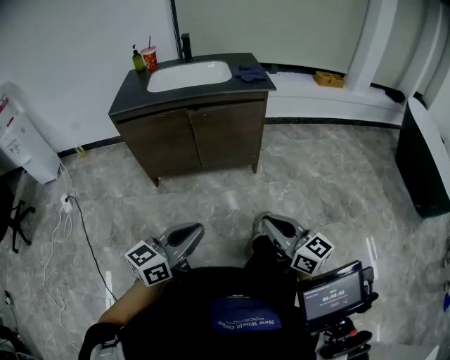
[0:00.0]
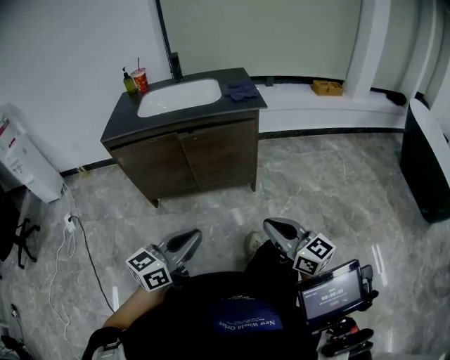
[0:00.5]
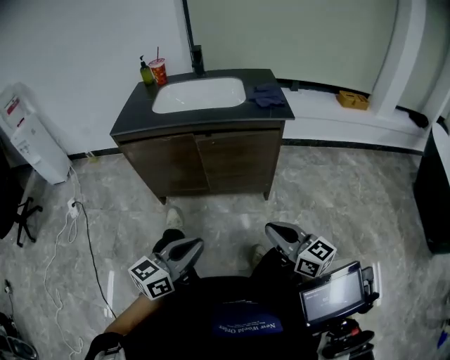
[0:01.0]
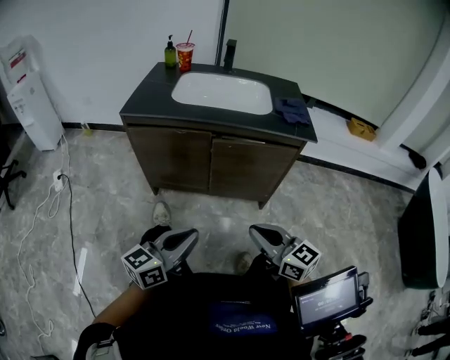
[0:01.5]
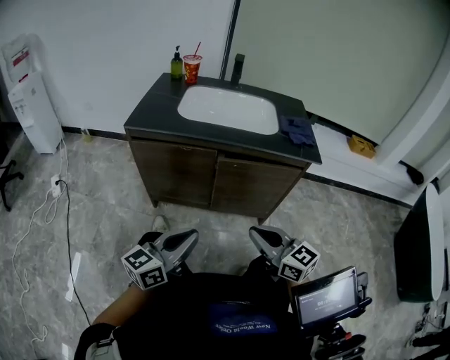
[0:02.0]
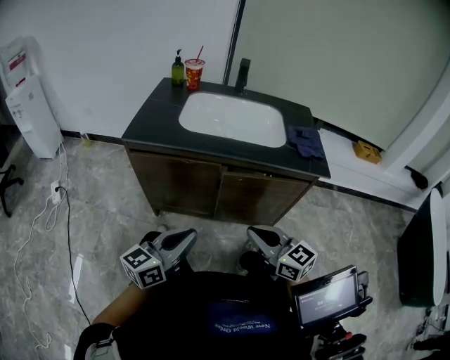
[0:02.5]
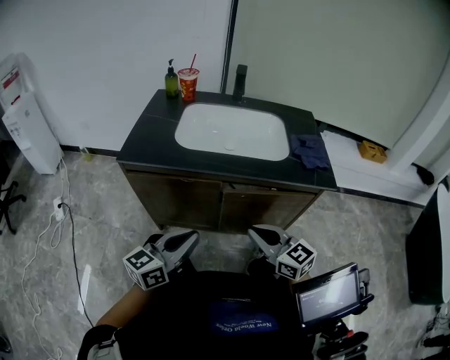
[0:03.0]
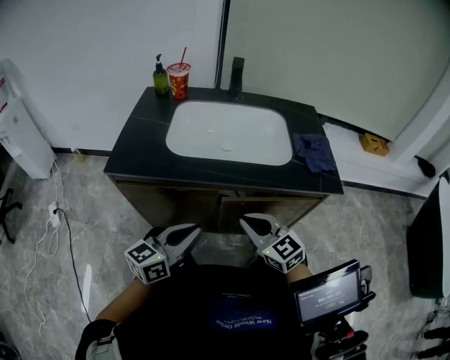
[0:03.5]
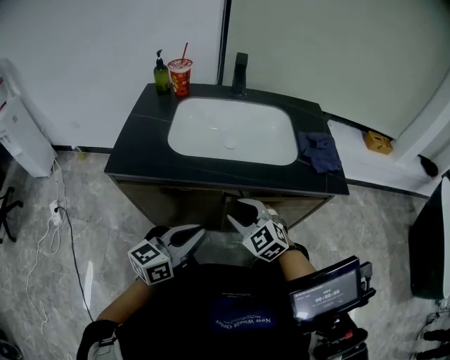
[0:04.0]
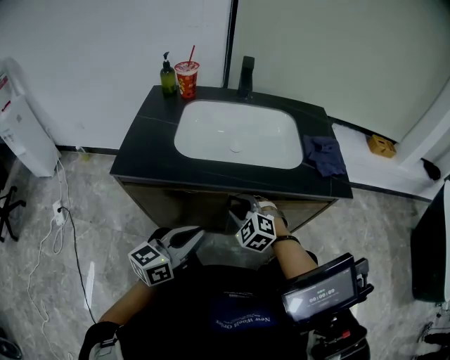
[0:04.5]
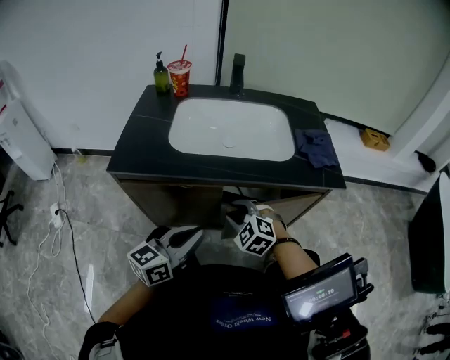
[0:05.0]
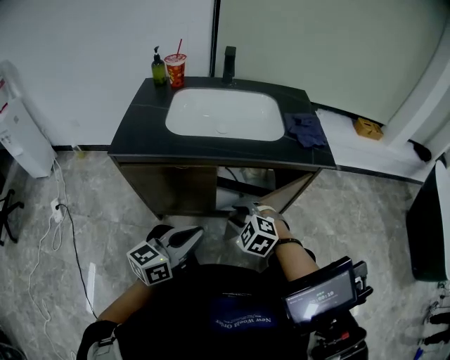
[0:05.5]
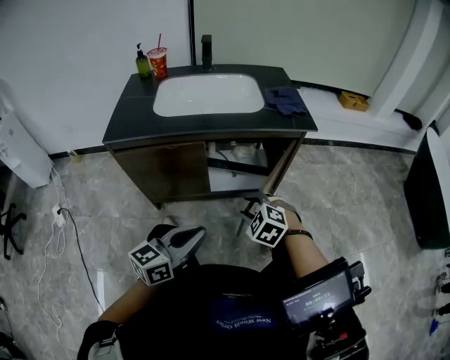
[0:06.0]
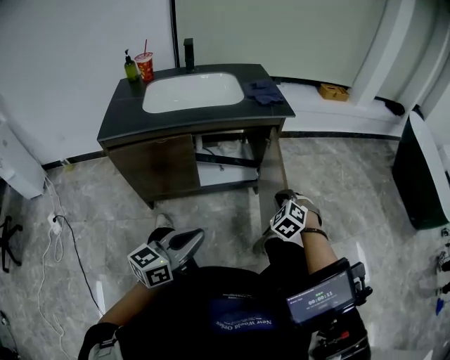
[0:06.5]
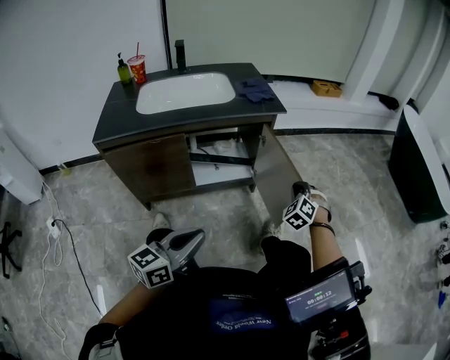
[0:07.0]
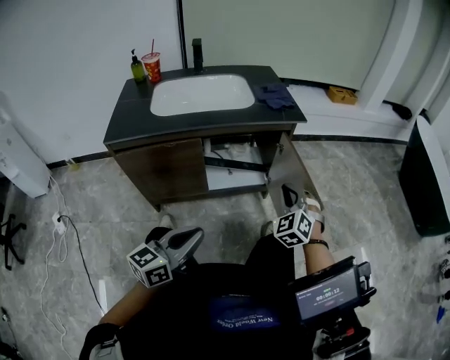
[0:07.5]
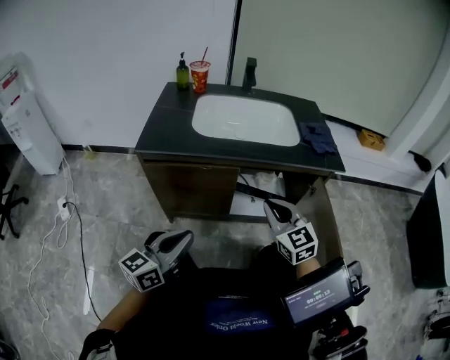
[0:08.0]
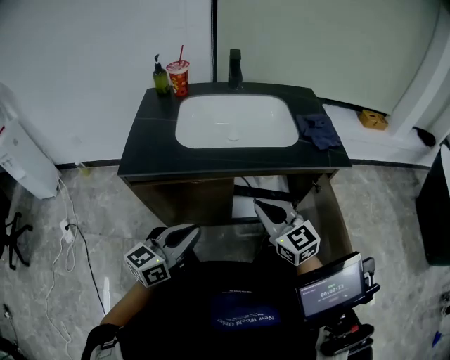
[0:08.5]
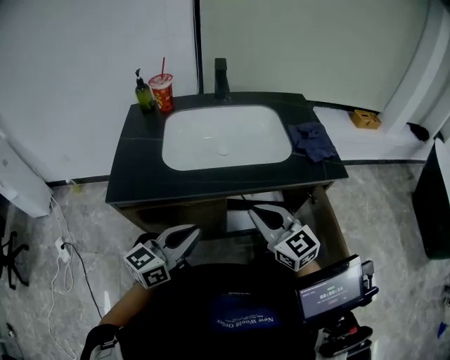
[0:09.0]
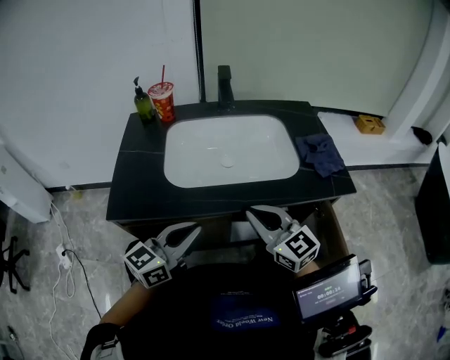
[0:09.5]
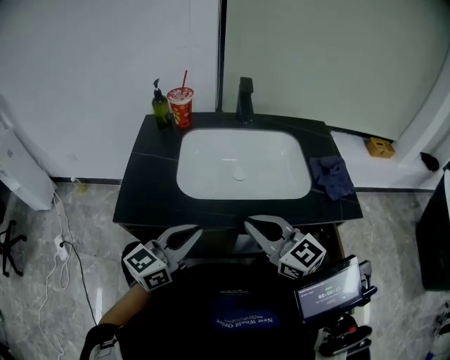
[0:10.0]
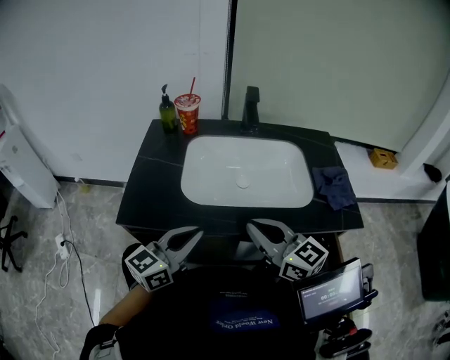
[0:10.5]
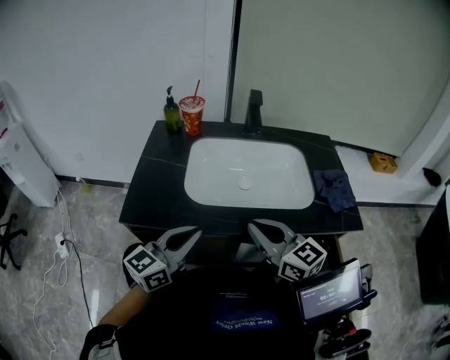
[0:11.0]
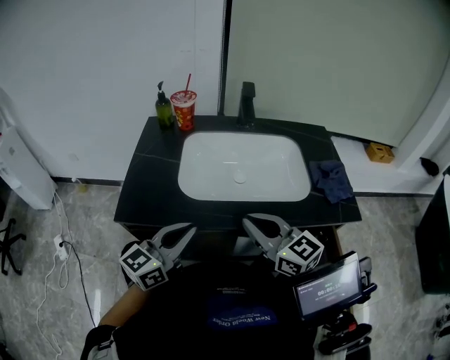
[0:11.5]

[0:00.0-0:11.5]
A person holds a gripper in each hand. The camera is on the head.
0:00.0 to 0:02.0: Both grippers travel together forward, roughly 25 cm.
0:02.0 to 0:04.0: Both grippers move forward, approximately 25 cm. The right gripper turns by some 40 degrees, and opens.
0:04.0 to 0:06.0: The left gripper heads backward, covering roughly 20 cm. Meanwhile the right gripper heads backward and to the right, covering roughly 20 cm, and turns by some 30 degrees.
0:06.0 to 0:07.5: The right gripper swivels some 40 degrees, and closes its fingers.
0:07.5 to 0:09.5: The right gripper moves approximately 30 cm, and turns by some 60 degrees. The left gripper shifts by about 30 cm.
0:09.5 to 0:11.5: The left gripper shifts by approximately 5 cm. Meanwhile the right gripper changes place by about 5 cm.

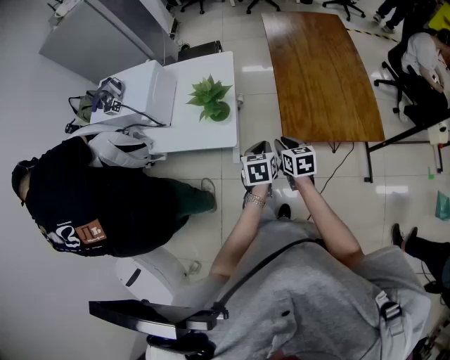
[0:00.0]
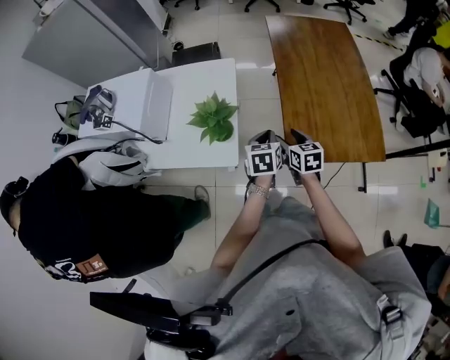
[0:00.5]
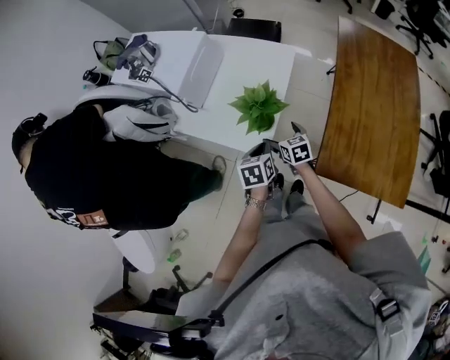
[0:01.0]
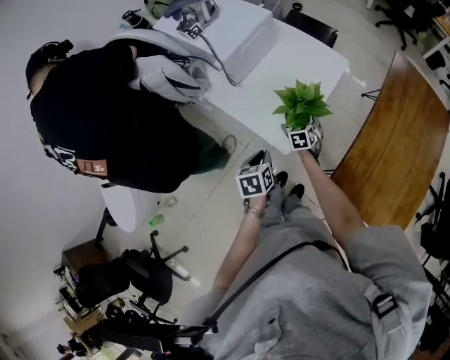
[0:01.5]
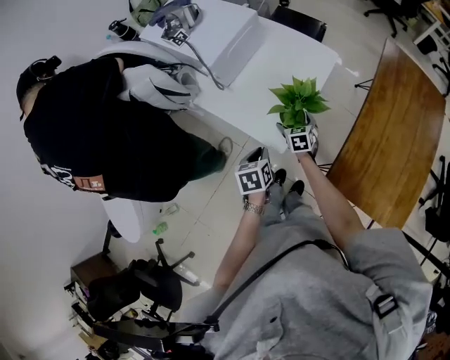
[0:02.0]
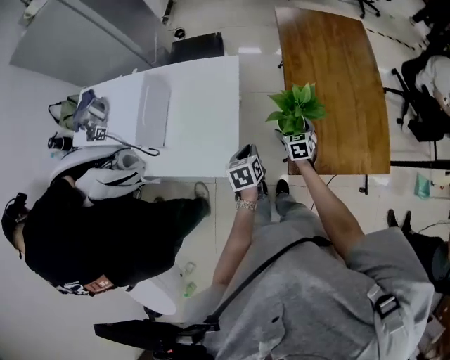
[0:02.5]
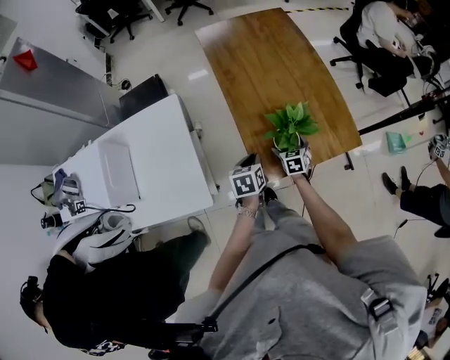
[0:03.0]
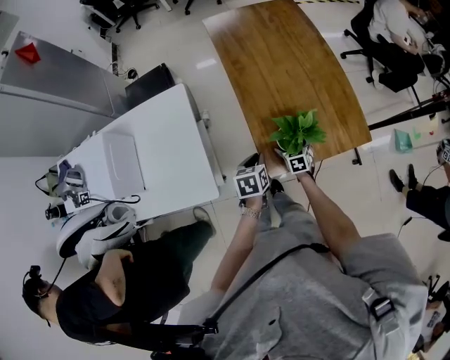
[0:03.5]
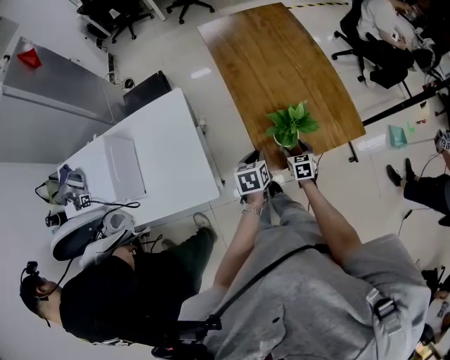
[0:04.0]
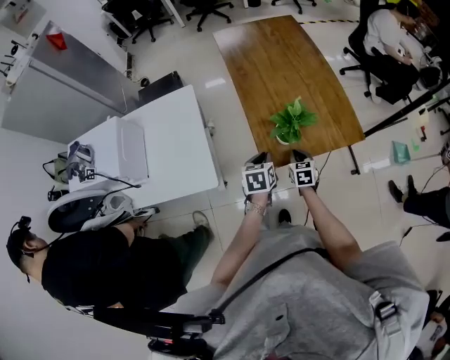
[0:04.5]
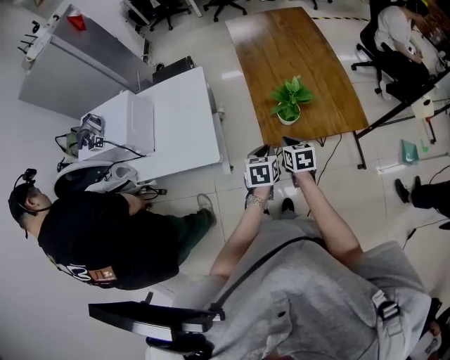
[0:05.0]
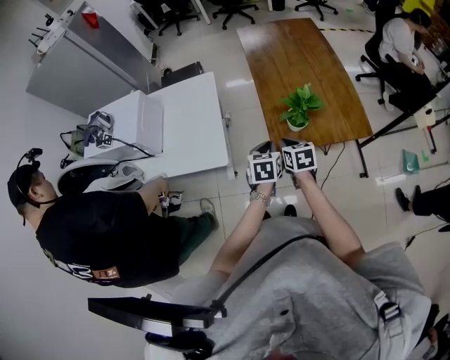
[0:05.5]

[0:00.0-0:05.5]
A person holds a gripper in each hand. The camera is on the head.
0:00.0 to 0:02.0: The right gripper changes place by about 40 cm, turns by about 40 degrees, and opens its fingers. The left gripper moves some 25 cm, and rotates some 40 degrees.
0:02.0 to 0:03.5: The right gripper ends up roughly 40 cm from where it was, and rotates about 50 degrees. Meanwhile the left gripper shifts by roughly 35 cm, and changes its angle by approximately 50 degrees.
0:03.5 to 0:05.5: The right gripper is displaced upward and backward by some 30 cm, and closes, while the left gripper travels backward and upward by some 15 cm.

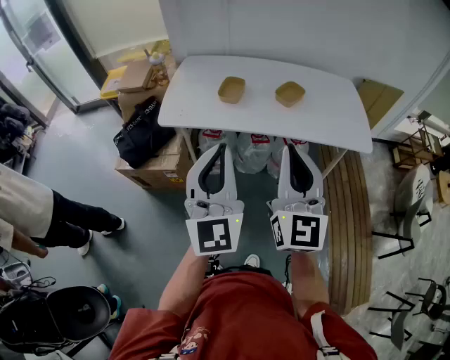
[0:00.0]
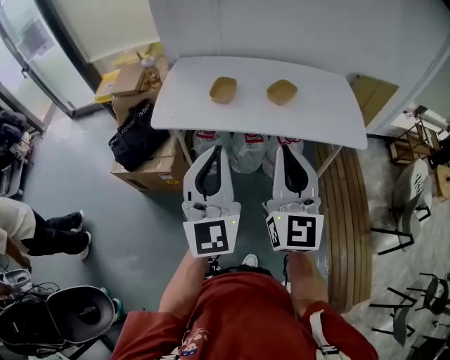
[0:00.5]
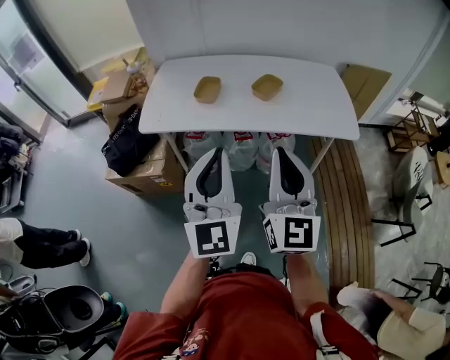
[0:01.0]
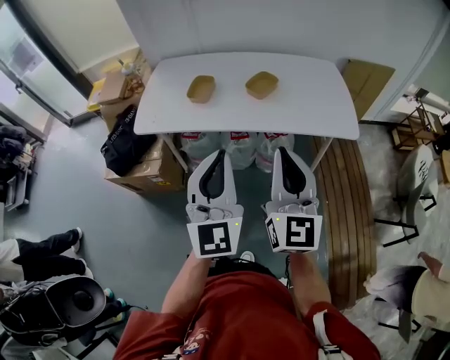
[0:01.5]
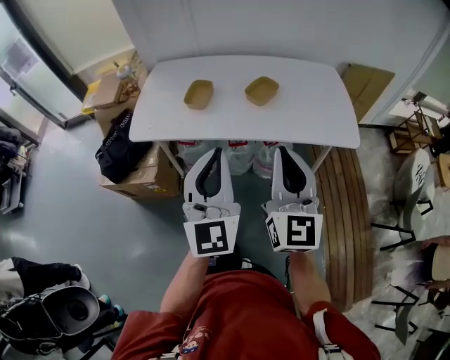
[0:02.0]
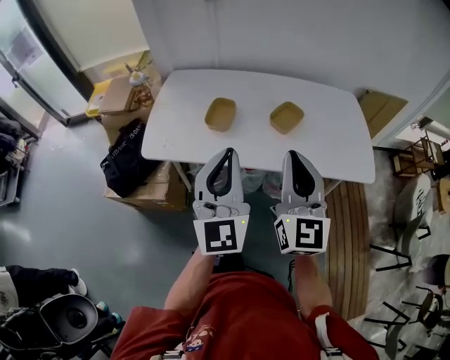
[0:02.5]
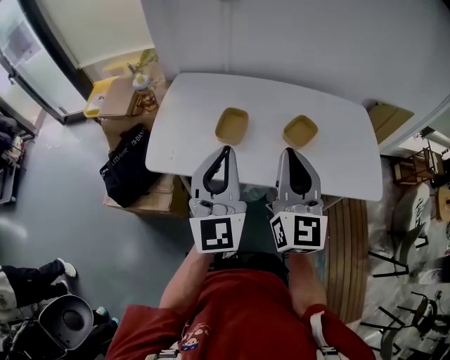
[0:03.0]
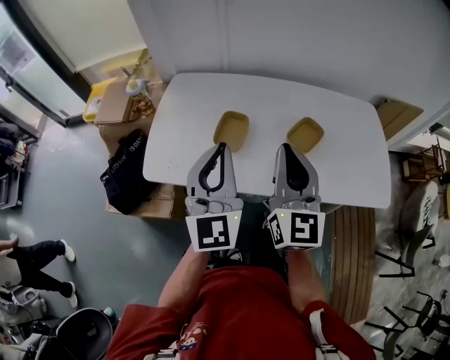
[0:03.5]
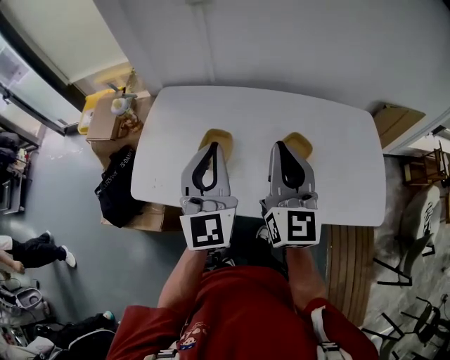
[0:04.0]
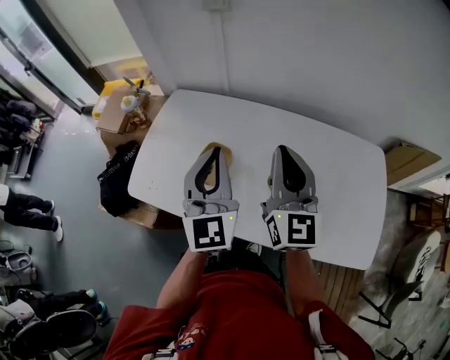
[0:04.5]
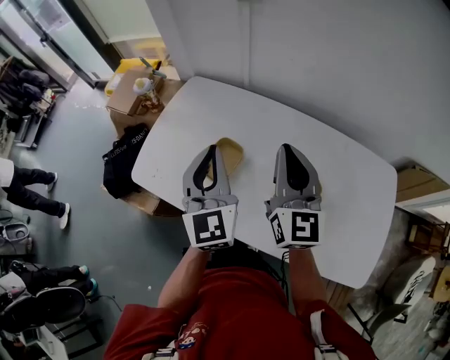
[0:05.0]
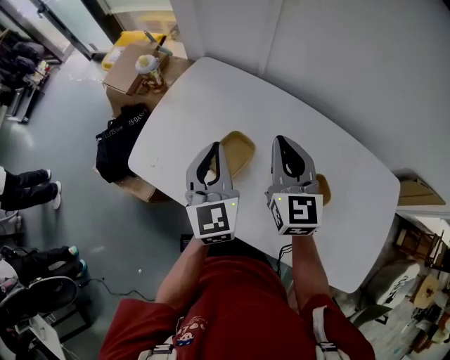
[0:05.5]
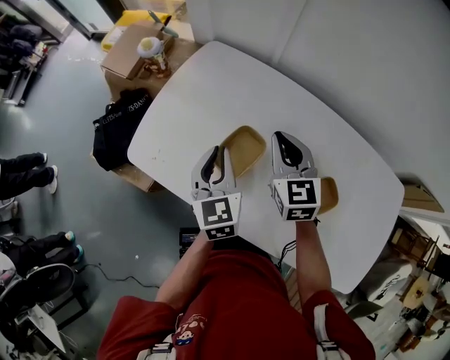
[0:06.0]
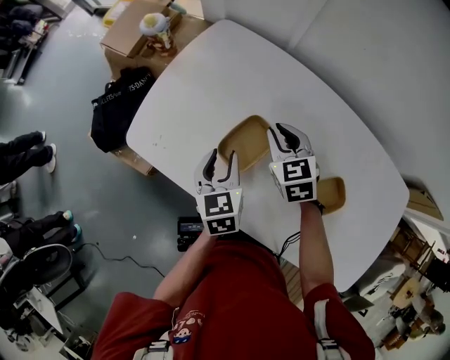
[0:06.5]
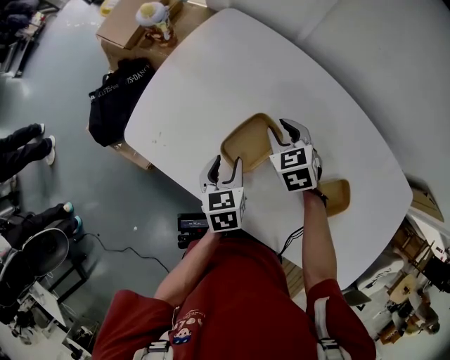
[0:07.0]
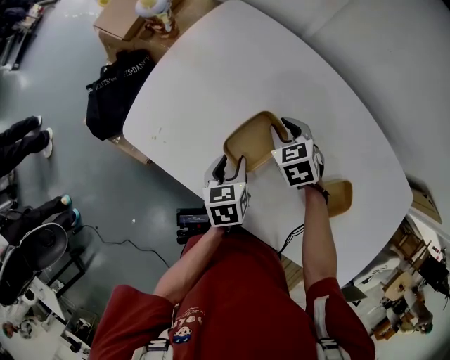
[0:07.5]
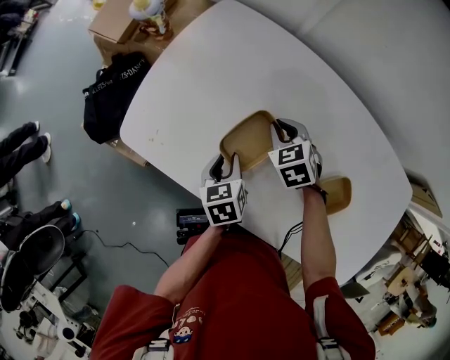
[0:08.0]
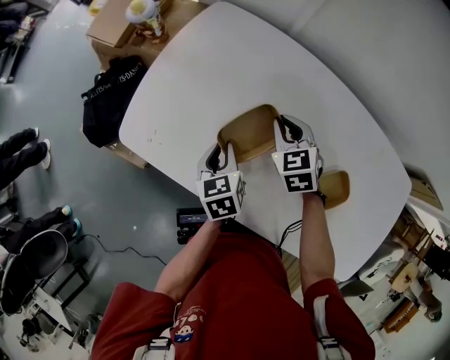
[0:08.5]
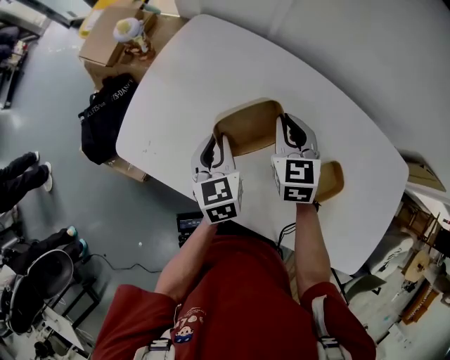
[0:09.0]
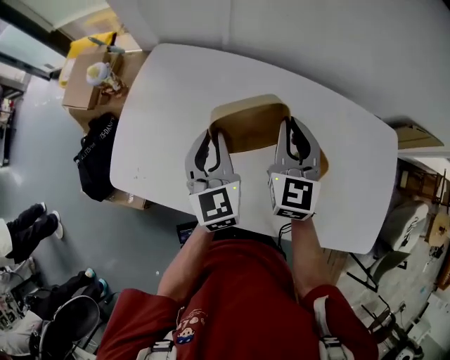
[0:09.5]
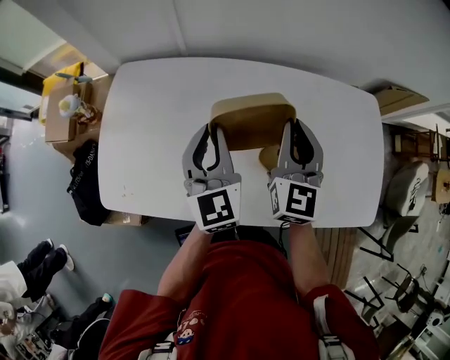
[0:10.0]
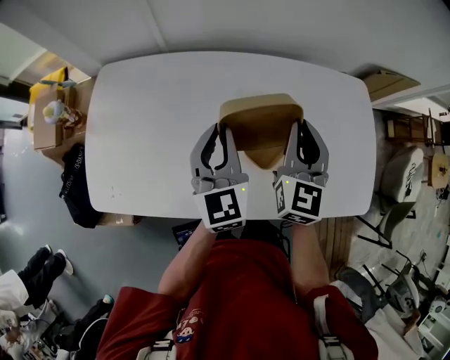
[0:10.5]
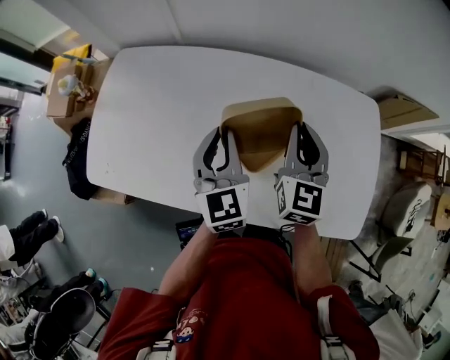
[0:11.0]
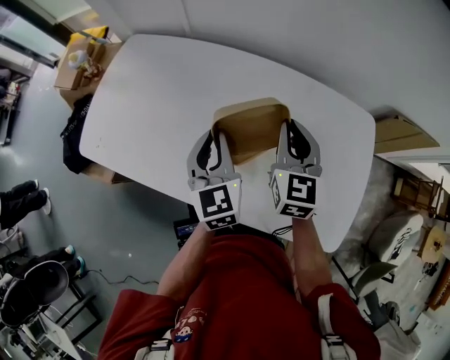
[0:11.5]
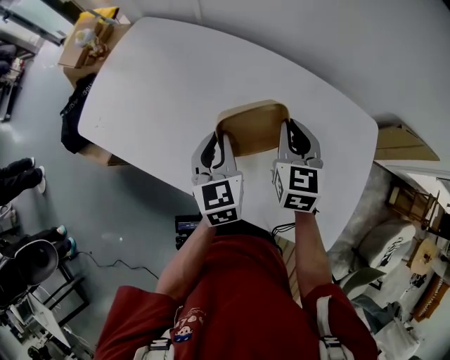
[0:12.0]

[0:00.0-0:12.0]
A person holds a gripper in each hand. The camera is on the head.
0:00.0 to 0:02.0: Both grippers move to the right and forward, roughly 15 cm.
0:02.0 to 0:04.0: The two grippers go some 35 cm forward.
0:04.0 to 0:06.0: The left gripper heads downward, covering roughly 20 cm, and points its fingers approximately 30 degrees further downward; the right gripper moves about 30 cm, and angles its fingers downward, by approximately 30 degrees.
0:06.0 to 0:08.0: Both grippers travel together downward, roughly 20 cm. The left gripper turns by about 30 degrees. Meanwhile the right gripper angles its fingers downward, by roughly 30 degrees, and opens and closes again.
0:08.0 to 0:10.0: Both grippers travel together upward, about 25 cm. The right gripper tips its fingers upward by about 50 degrees; the left gripper tips its fingers upward by roughly 40 degrees, and closes up.
0:10.0 to 0:12.0: The left gripper shifts by approximately 20 cm, and rotates roughly 30 degrees; the right gripper moves approximately 15 cm, and turns by about 30 degrees.
